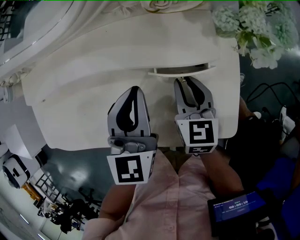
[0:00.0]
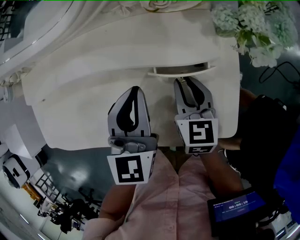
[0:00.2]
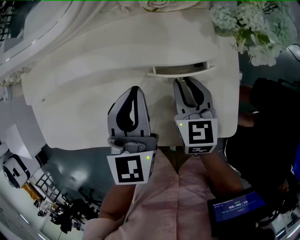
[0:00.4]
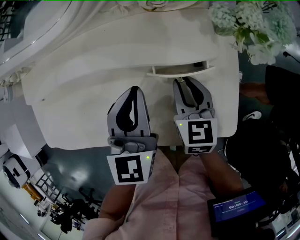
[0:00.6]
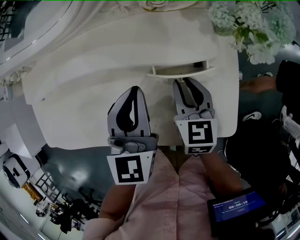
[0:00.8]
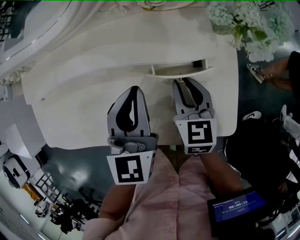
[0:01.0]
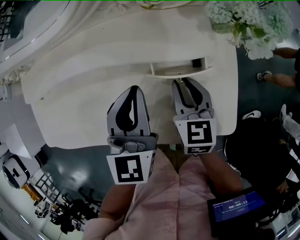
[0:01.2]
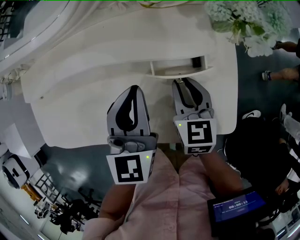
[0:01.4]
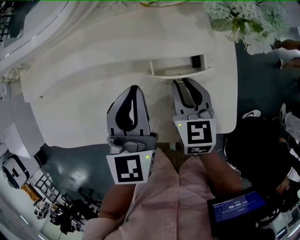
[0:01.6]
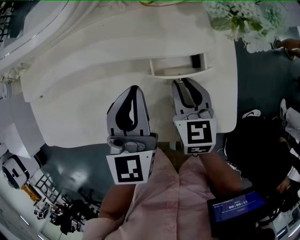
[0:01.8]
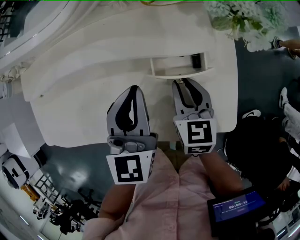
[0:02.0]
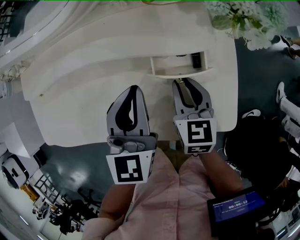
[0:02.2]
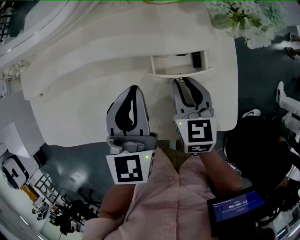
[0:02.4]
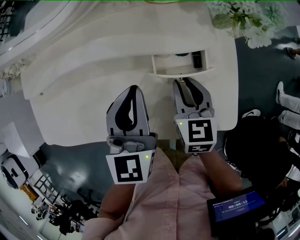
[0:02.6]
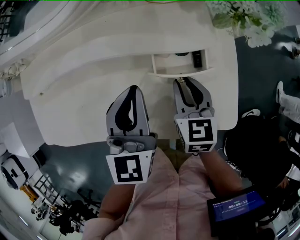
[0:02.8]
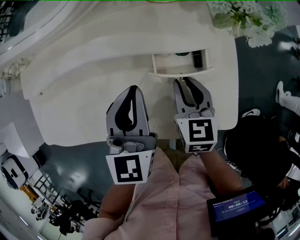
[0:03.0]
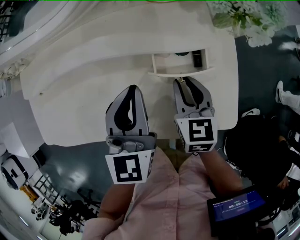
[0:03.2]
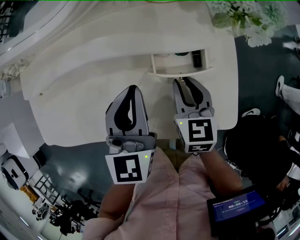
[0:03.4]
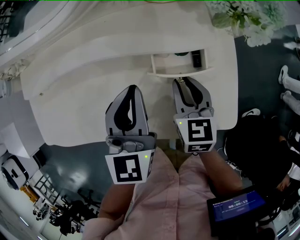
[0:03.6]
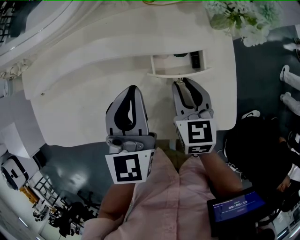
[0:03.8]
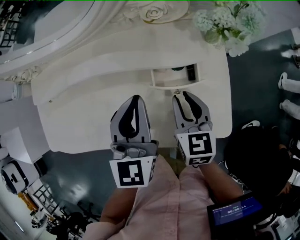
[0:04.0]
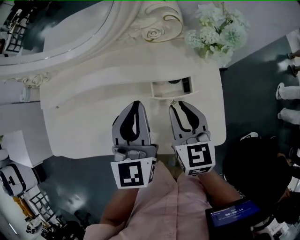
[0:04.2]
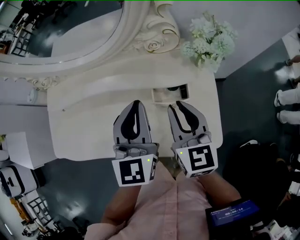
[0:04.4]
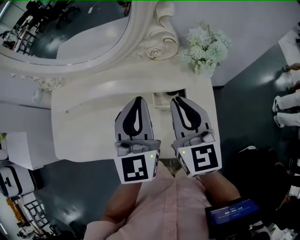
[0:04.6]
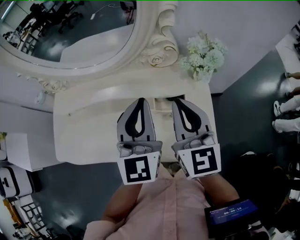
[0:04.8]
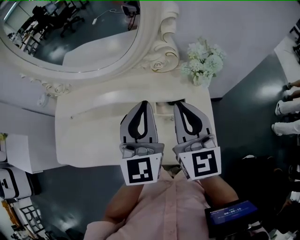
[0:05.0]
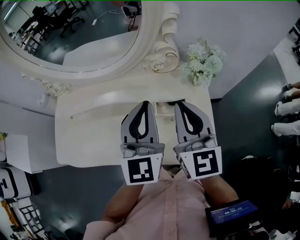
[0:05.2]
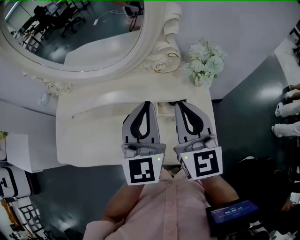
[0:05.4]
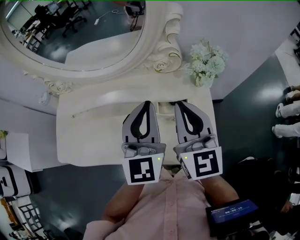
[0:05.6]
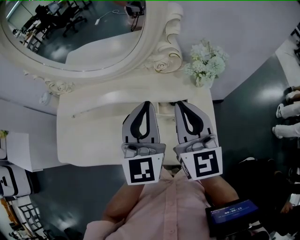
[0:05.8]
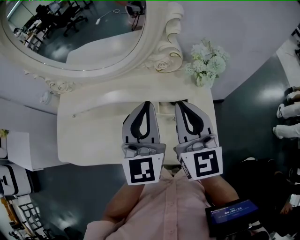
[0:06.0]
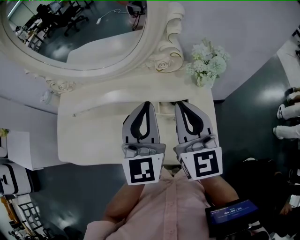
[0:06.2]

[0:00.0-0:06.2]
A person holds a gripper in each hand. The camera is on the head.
0:00.0 to 0:03.2: There are only small adjustments of the grippers.
0:03.2 to 0:04.6: The left gripper travels upward by approximately 15 cm, while the right gripper is displaced upward by some 20 cm, and swivels roughly 30 degrees.
0:04.6 to 0:06.2: The right gripper goes roughly 5 cm upward.

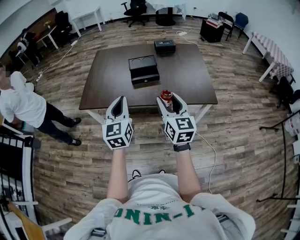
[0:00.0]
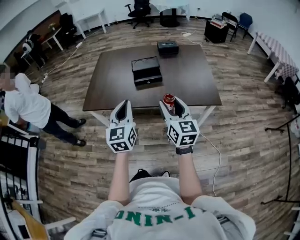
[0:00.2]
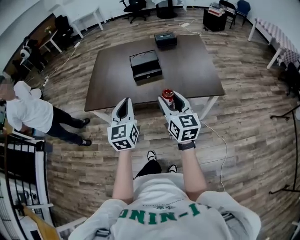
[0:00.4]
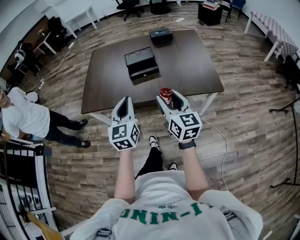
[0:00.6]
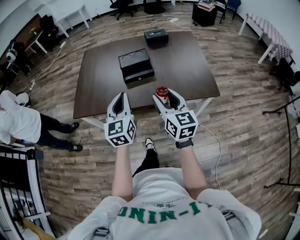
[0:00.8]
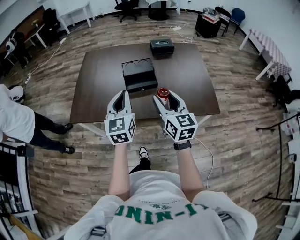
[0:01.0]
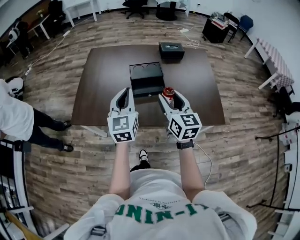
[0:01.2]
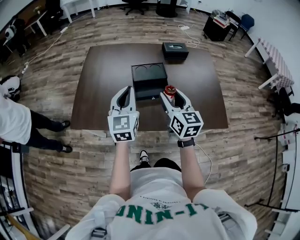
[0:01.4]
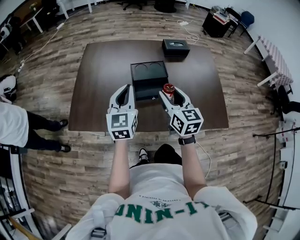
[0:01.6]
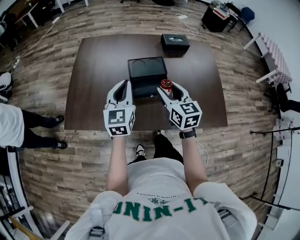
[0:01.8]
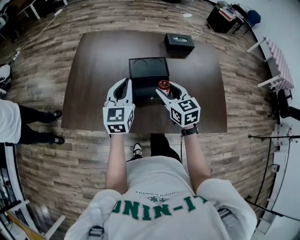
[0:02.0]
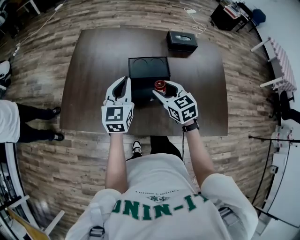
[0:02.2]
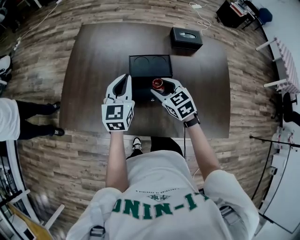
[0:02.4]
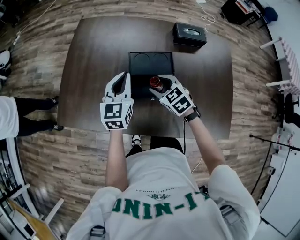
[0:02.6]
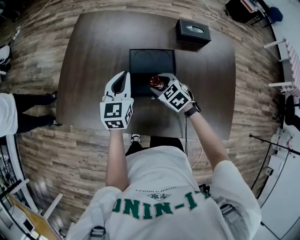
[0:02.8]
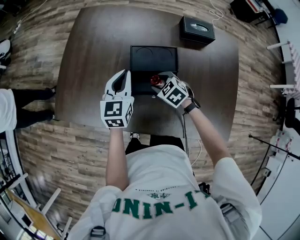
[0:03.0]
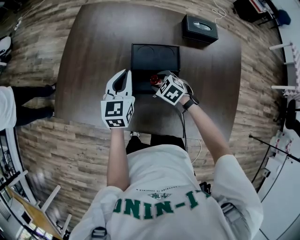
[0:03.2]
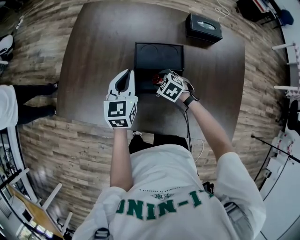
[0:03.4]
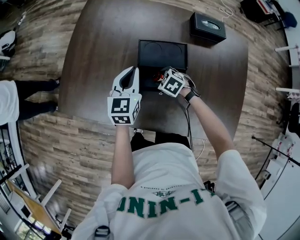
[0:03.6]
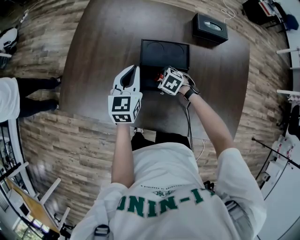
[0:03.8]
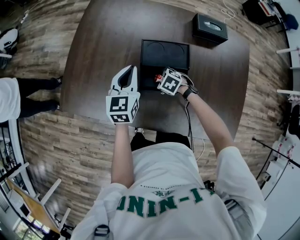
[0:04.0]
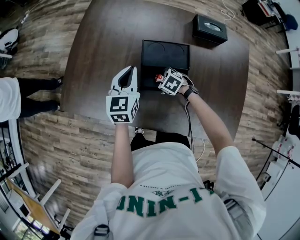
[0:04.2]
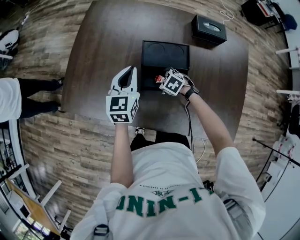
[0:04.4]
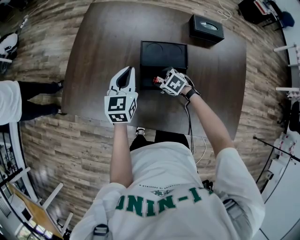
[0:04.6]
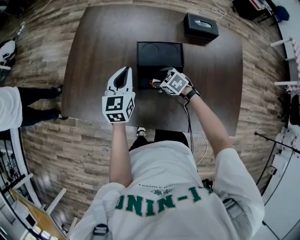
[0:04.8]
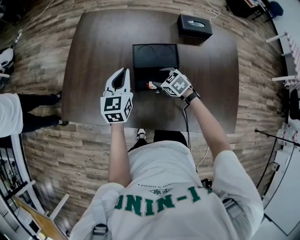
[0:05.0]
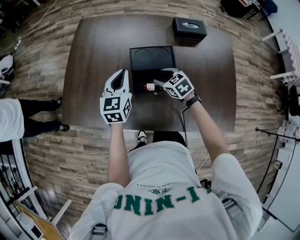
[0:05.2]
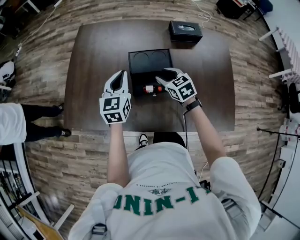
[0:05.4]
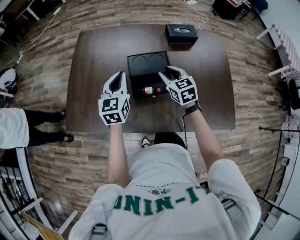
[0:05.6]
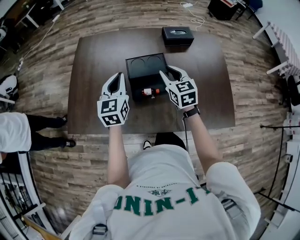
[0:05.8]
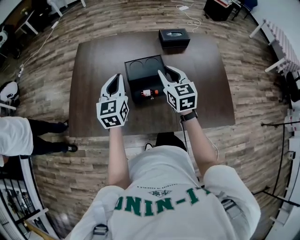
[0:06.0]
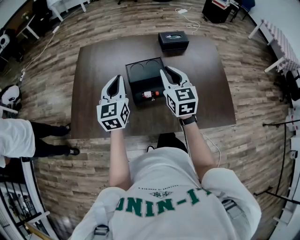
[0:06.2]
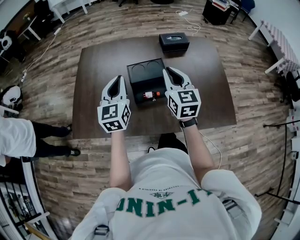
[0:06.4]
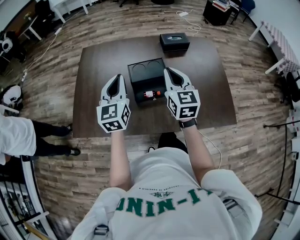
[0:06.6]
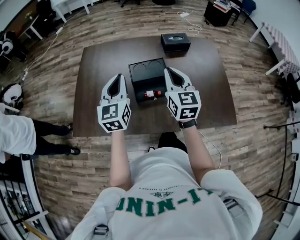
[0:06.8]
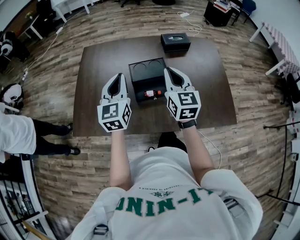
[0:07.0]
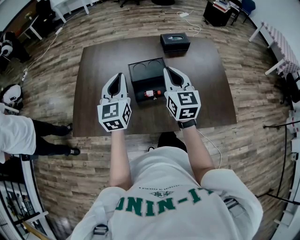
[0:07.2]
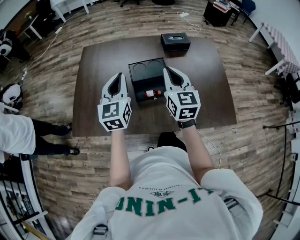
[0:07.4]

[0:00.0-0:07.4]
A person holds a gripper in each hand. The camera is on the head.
0:00.0 to 0:01.4: The grippers both shift forward by about 30 cm.
0:01.4 to 0:03.0: The left gripper moves forward and downward, roughly 25 cm, while the right gripper moves downward and forward, some 35 cm, and tilts its fingers some 50 degrees downward.
0:03.0 to 0:04.4: The right gripper goes roughly 10 cm downward.
0:04.4 to 0:06.0: The left gripper is displaced upward by approximately 10 cm, while the right gripper shifts about 30 cm upward, tilts its fingers approximately 50 degrees upward, and closes.
0:06.0 to 0:07.4: The right gripper heads upward and backward, covering some 10 cm. Meanwhile the left gripper shifts by some 5 cm.

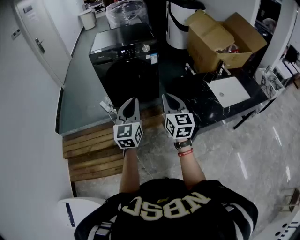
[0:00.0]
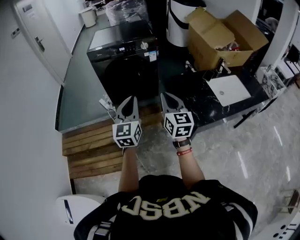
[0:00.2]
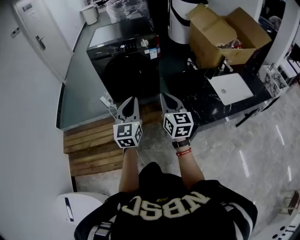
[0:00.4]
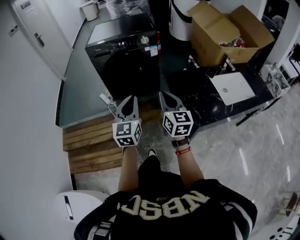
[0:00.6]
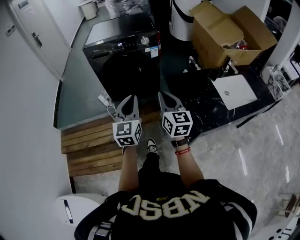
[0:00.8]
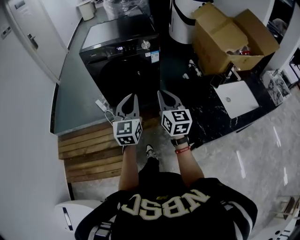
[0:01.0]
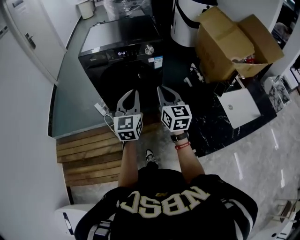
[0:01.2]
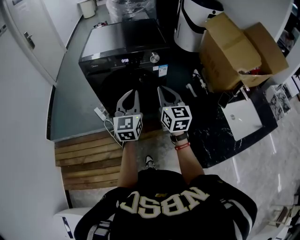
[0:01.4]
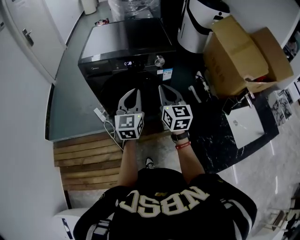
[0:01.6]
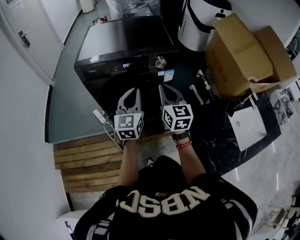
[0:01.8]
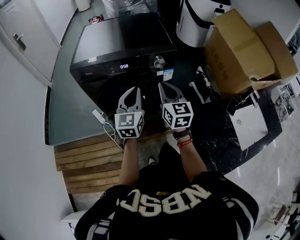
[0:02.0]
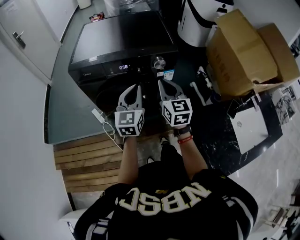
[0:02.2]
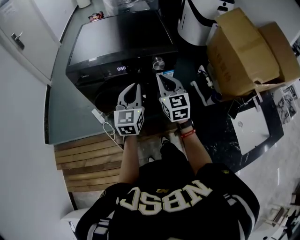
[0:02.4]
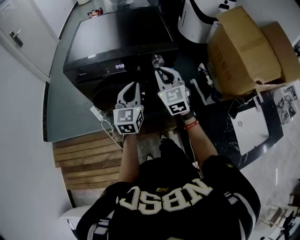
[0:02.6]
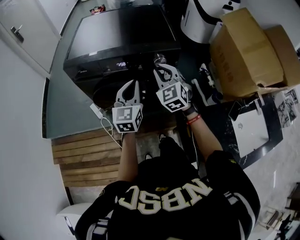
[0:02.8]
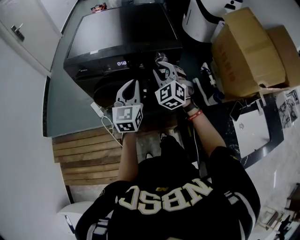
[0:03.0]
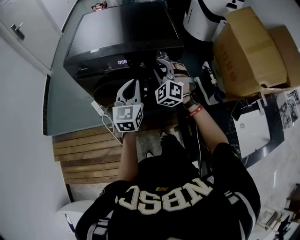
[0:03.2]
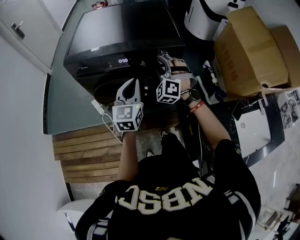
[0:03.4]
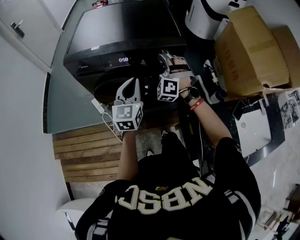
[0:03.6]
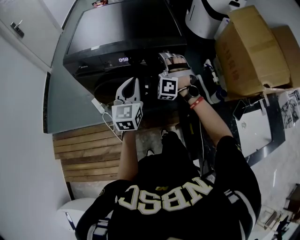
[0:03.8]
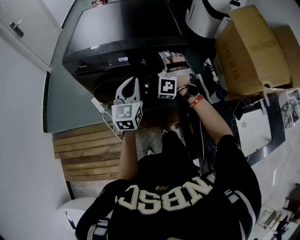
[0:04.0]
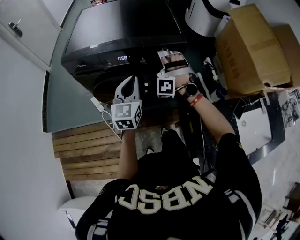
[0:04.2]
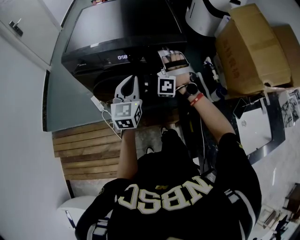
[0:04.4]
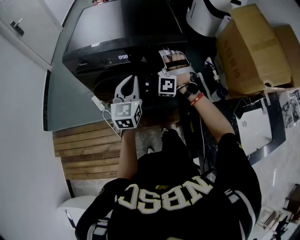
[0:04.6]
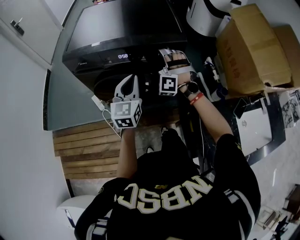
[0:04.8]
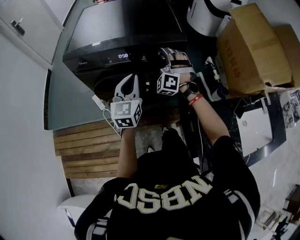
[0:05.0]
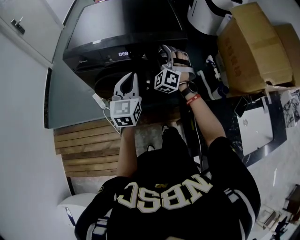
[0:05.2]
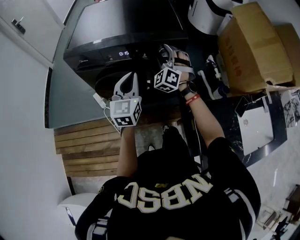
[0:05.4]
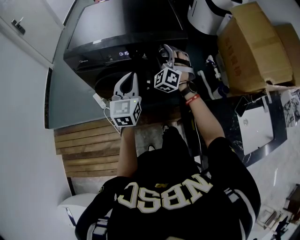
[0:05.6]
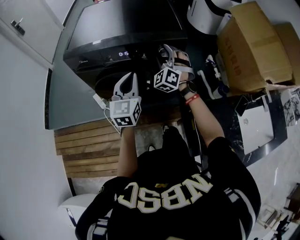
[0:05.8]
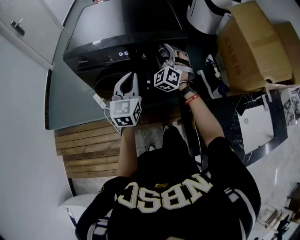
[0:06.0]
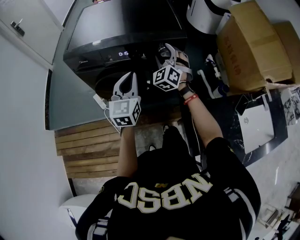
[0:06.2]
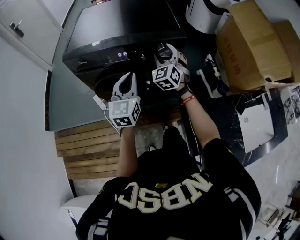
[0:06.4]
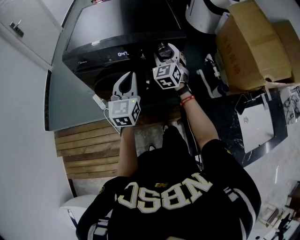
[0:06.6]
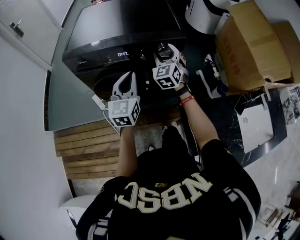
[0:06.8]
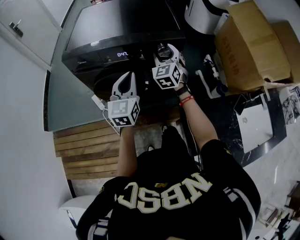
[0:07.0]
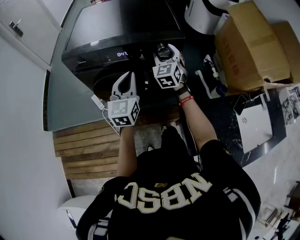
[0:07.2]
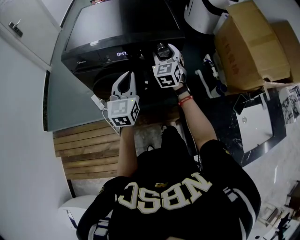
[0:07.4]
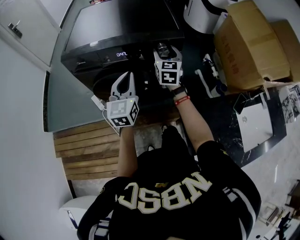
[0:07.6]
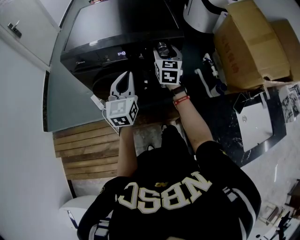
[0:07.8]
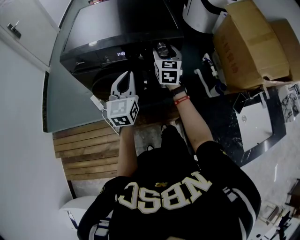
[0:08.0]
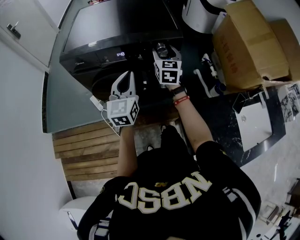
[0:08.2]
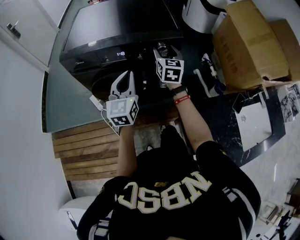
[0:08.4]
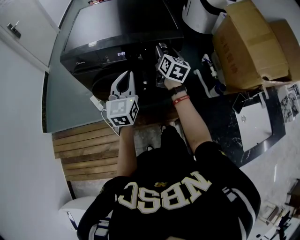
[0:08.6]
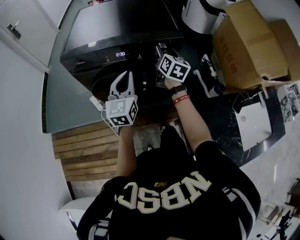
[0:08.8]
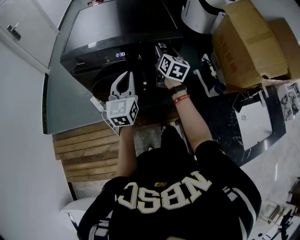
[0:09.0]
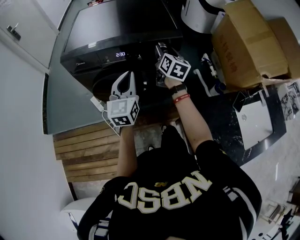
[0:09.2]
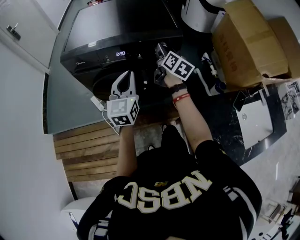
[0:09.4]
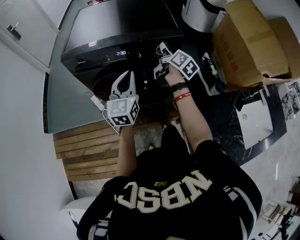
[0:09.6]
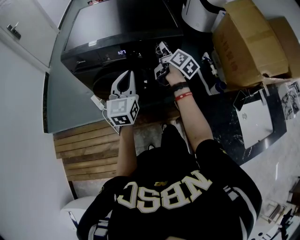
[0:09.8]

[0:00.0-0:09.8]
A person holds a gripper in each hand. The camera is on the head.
0:00.0 to 0:01.4: Both grippers move forward, some 30 cm.
0:01.4 to 0:02.8: The grippers both shift forward by approximately 20 cm. The right gripper changes its angle by some 40 degrees.
0:02.8 to 0:04.2: The right gripper is displaced forward and downward by some 10 cm, rolls counterclockwise, seen from behind, by roughly 60 degrees, and opens its fingers.
0:04.2 to 0:05.6: The right gripper swivels about 30 degrees.
0:05.6 to 0:07.0: The right gripper changes its angle by approximately 30 degrees.
0:07.0 to 0:08.4: The right gripper rotates roughly 30 degrees.
0:08.4 to 0:09.8: The right gripper rolls clockwise, seen from behind, by roughly 50 degrees.
